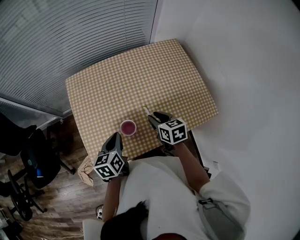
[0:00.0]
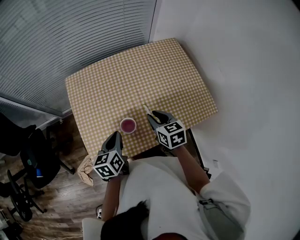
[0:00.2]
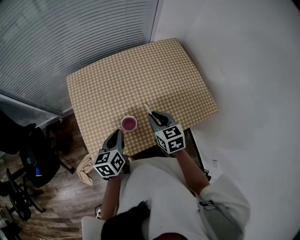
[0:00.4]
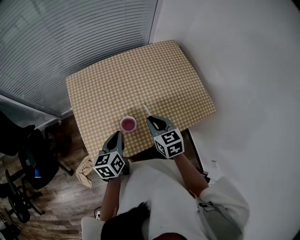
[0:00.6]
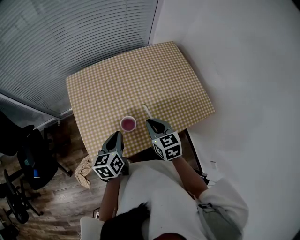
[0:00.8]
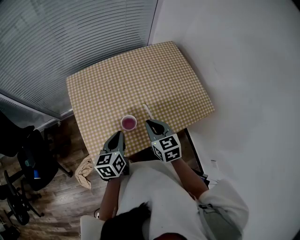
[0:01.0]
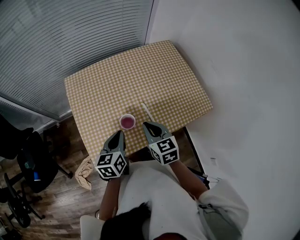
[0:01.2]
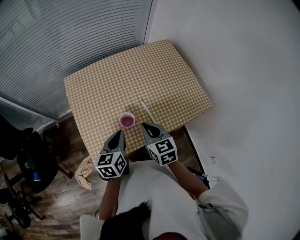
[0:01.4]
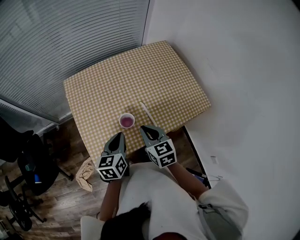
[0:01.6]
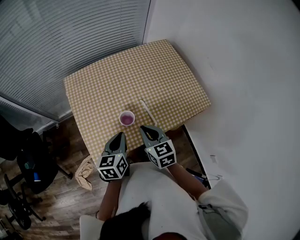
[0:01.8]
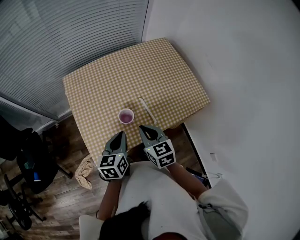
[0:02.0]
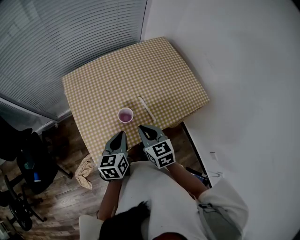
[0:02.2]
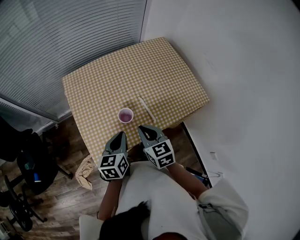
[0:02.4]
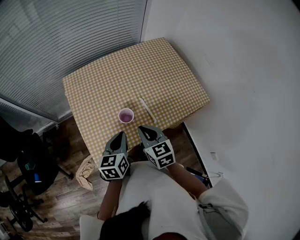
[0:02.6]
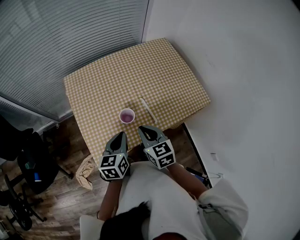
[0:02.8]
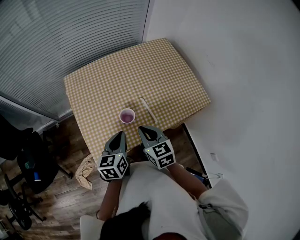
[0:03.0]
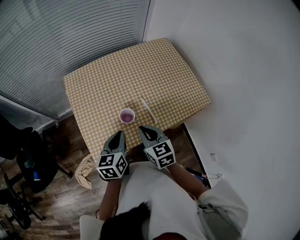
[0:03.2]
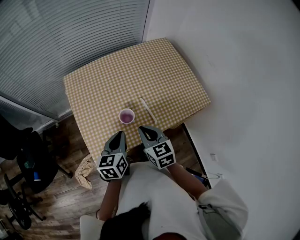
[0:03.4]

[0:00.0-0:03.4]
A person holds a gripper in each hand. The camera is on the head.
0:00.0 to 0:01.6: The left gripper moves roughly 5 cm; the right gripper goes some 15 cm backward, to the left and upward, and closes its fingers.
0:01.6 to 0:03.4: The grippers move only a little.

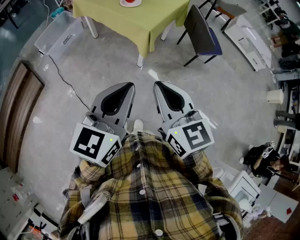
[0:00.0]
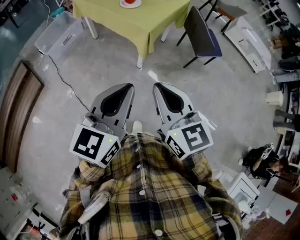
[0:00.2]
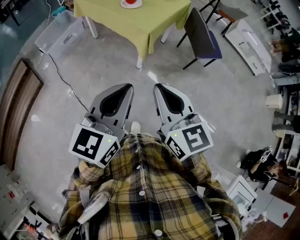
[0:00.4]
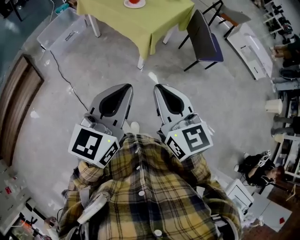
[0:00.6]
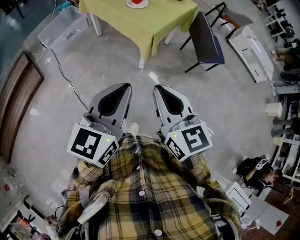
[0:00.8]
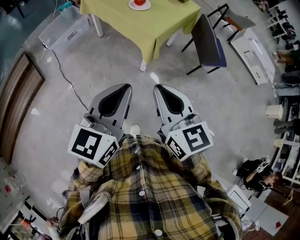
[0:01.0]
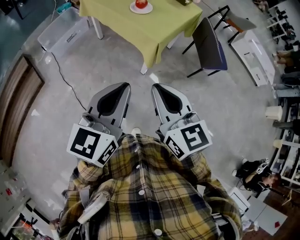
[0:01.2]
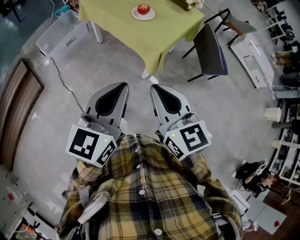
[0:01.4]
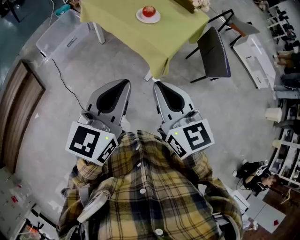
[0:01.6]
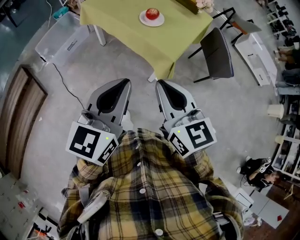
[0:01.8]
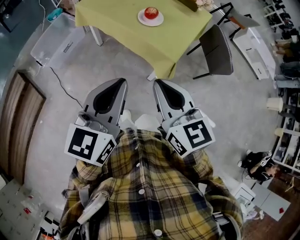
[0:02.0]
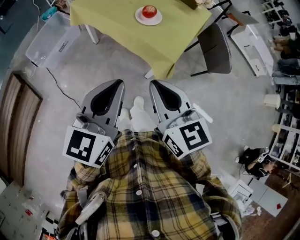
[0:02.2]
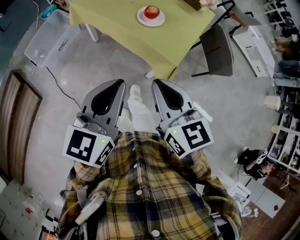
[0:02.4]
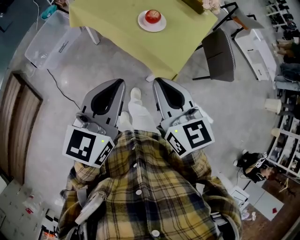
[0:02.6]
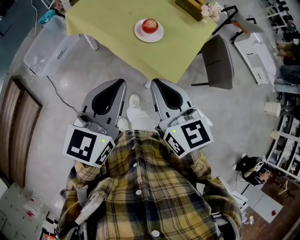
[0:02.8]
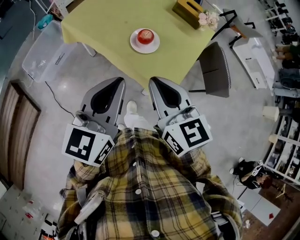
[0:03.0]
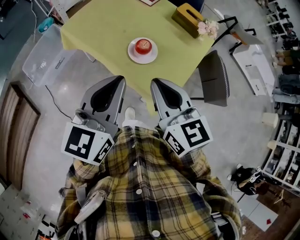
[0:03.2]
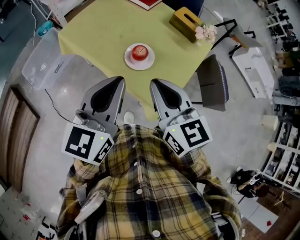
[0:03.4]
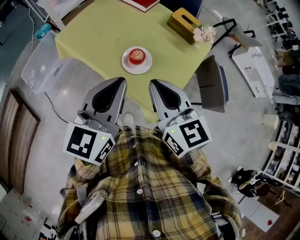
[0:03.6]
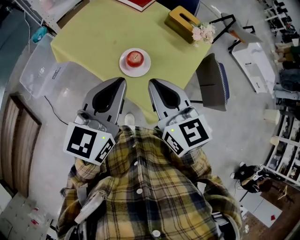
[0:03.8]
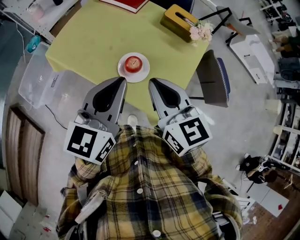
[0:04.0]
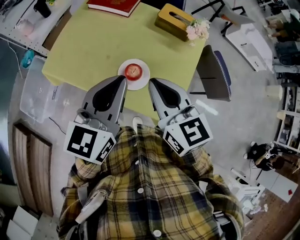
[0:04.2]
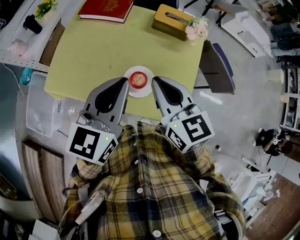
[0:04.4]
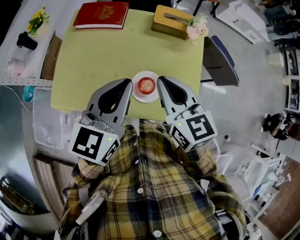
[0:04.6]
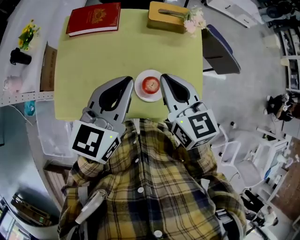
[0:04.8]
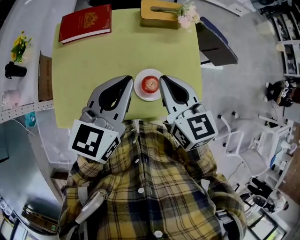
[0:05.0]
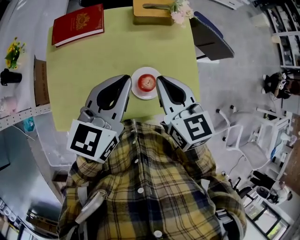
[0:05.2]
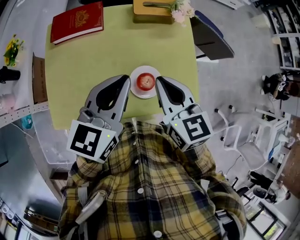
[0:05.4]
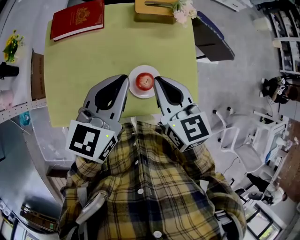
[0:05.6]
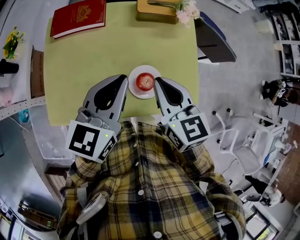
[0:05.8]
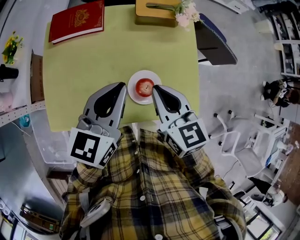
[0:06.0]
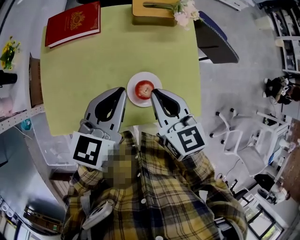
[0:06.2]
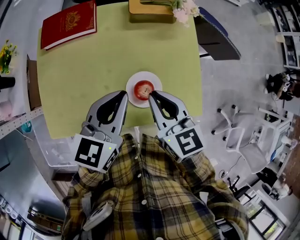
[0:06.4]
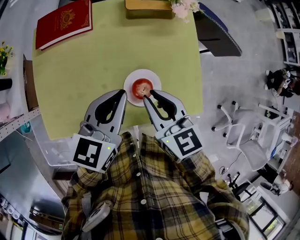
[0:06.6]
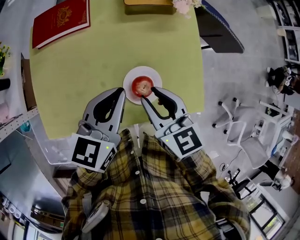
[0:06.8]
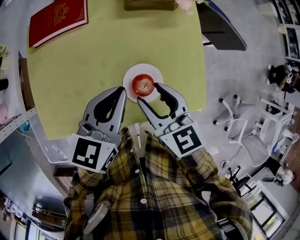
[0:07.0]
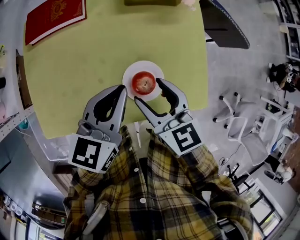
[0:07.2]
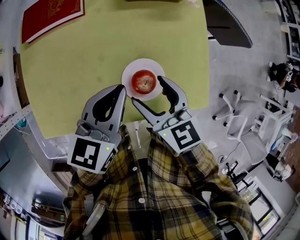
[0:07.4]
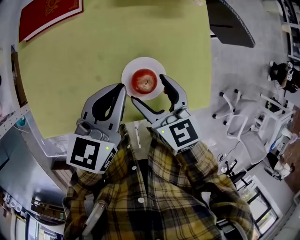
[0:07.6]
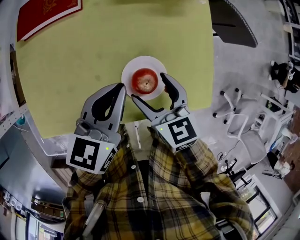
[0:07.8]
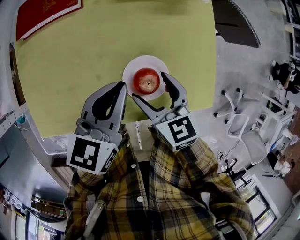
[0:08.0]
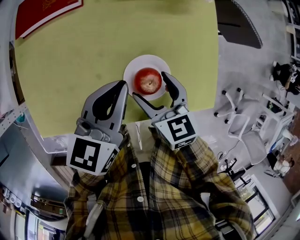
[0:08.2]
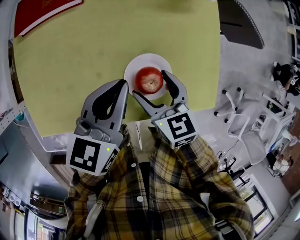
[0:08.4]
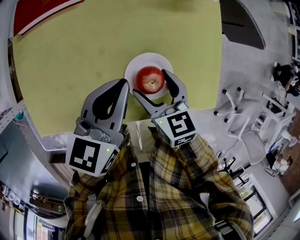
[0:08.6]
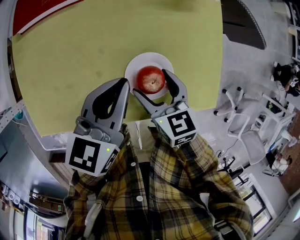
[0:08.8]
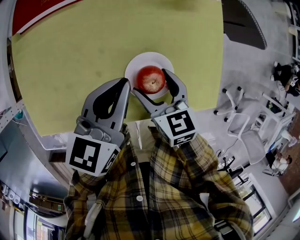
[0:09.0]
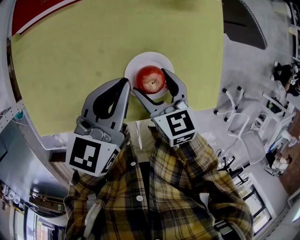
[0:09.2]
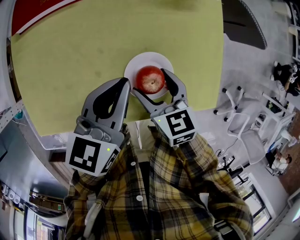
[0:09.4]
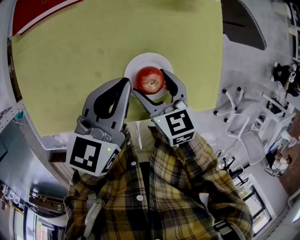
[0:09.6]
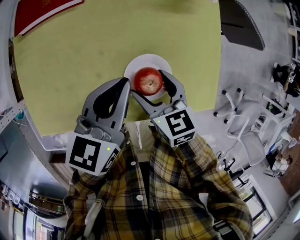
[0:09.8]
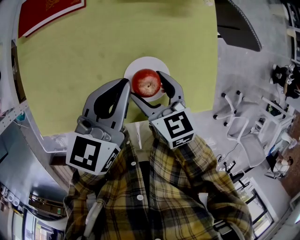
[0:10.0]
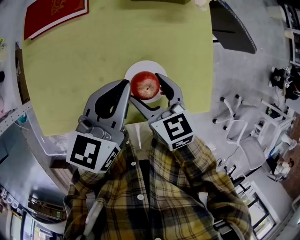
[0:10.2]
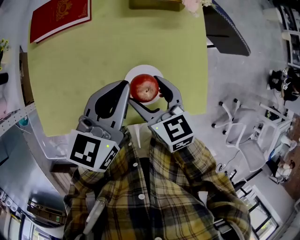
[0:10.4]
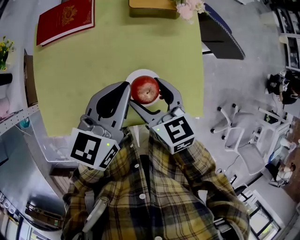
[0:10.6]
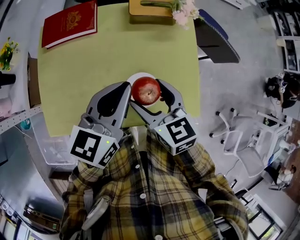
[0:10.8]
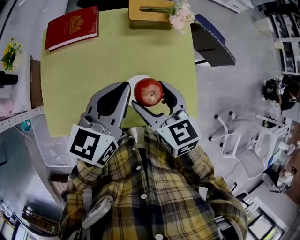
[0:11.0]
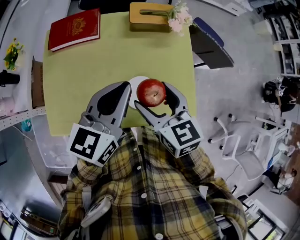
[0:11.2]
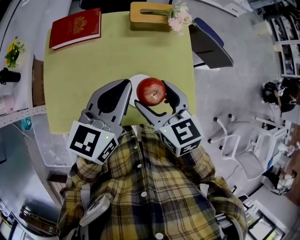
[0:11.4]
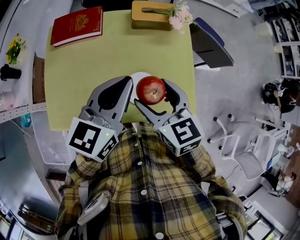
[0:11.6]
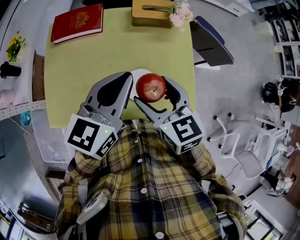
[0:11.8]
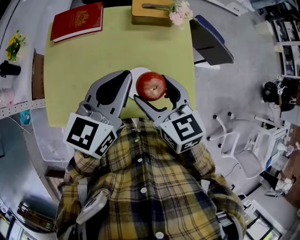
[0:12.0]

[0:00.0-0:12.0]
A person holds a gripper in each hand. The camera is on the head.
0:00.0 to 0:01.6: Both grippers move forward and to the left, approximately 20 cm.
0:01.6 to 0:03.0: Both grippers travel together forward, roughly 30 cm.
0:03.0 to 0:04.4: Both grippers travel together forward, roughly 25 cm. The left gripper changes its angle by some 20 degrees.
0:04.4 to 0:06.0: The right gripper shifts approximately 5 cm downward, and changes its angle by about 20 degrees. The left gripper ends up roughly 10 cm from where it was, and turns by roughly 20 degrees.
0:06.0 to 0:07.6: The two grippers go some 10 cm downward. The right gripper opens its fingers.
0:07.6 to 0:09.0: The right gripper heads downward, covering some 5 cm.
0:09.0 to 0:10.4: Both grippers move upward, some 10 cm.
0:10.4 to 0:12.0: The two grippers go roughly 10 cm upward.

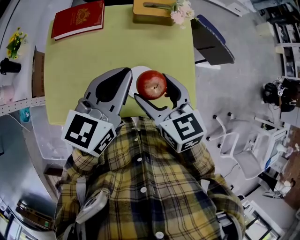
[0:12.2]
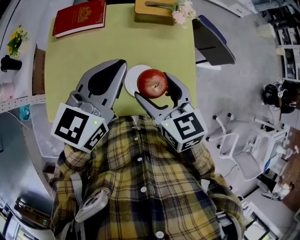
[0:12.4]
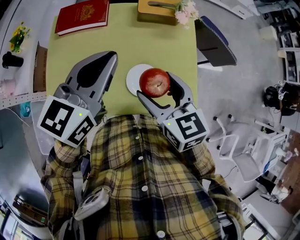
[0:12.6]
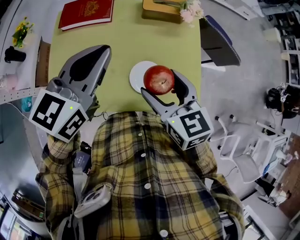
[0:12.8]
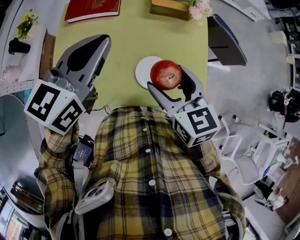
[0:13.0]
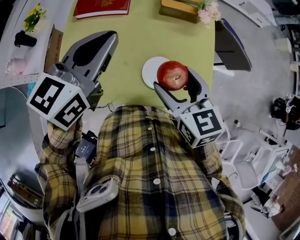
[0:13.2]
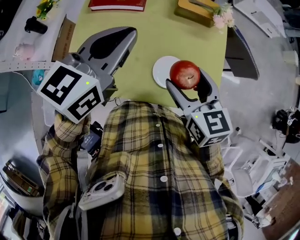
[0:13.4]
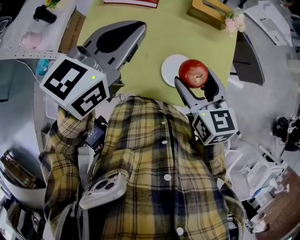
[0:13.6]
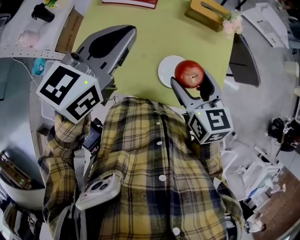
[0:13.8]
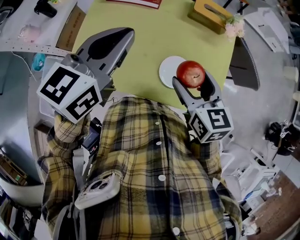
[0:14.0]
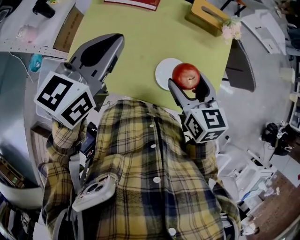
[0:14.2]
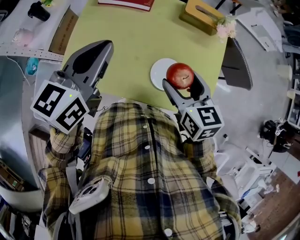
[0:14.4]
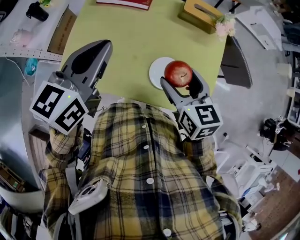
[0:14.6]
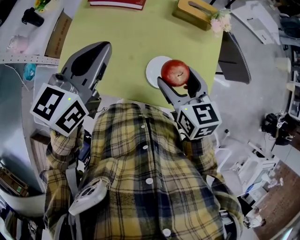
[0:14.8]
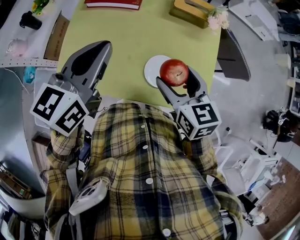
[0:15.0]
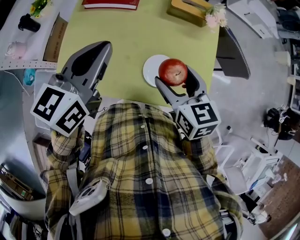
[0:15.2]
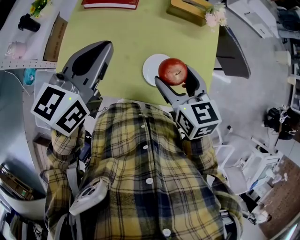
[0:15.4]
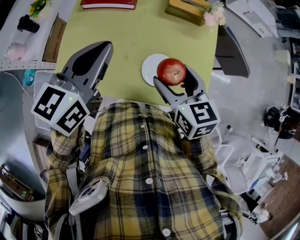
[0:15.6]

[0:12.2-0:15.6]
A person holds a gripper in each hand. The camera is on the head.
0:12.2 to 0:13.8: The left gripper shifts about 10 cm to the left.
0:13.8 to 0:15.6: There are only small adjustments of the grippers.

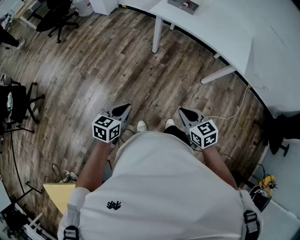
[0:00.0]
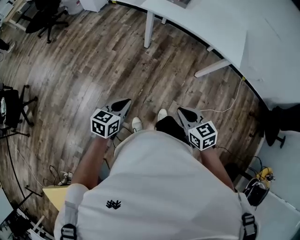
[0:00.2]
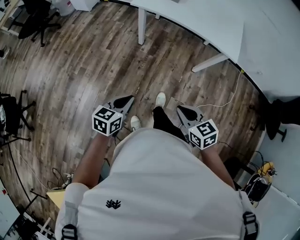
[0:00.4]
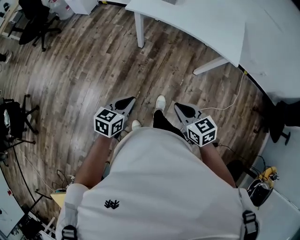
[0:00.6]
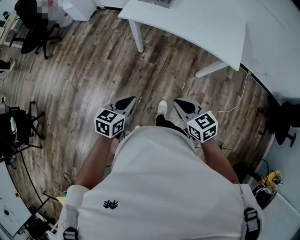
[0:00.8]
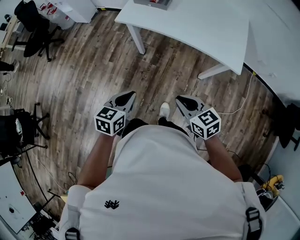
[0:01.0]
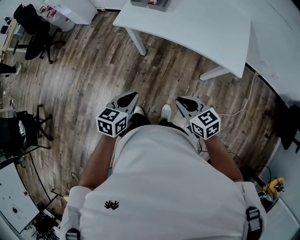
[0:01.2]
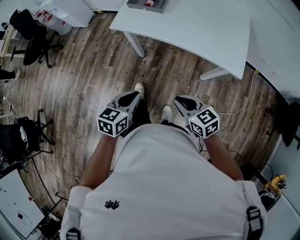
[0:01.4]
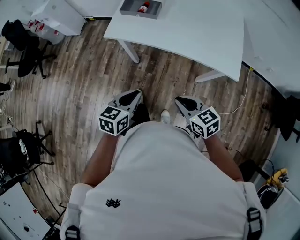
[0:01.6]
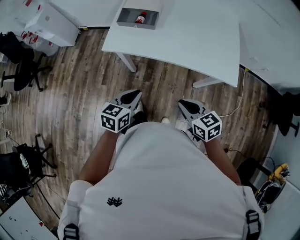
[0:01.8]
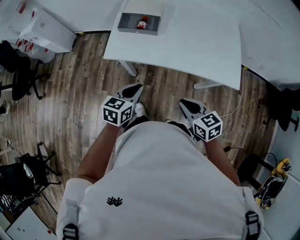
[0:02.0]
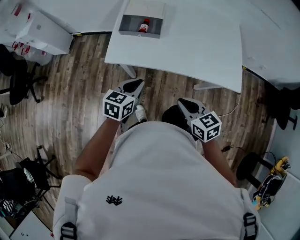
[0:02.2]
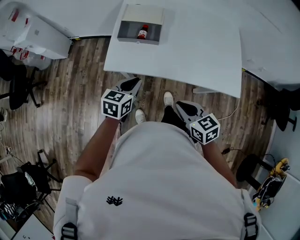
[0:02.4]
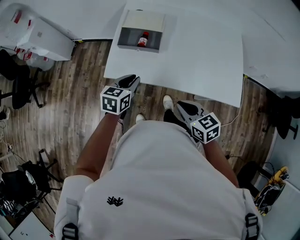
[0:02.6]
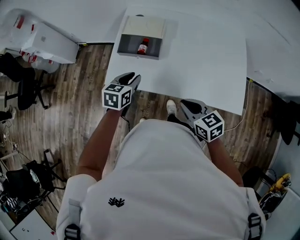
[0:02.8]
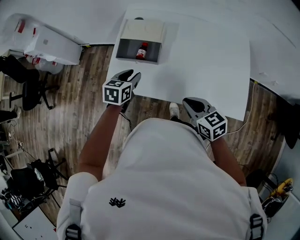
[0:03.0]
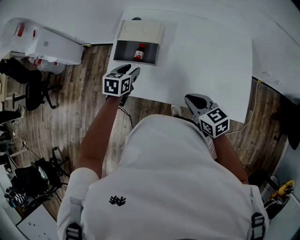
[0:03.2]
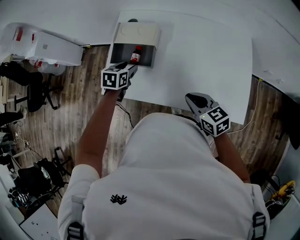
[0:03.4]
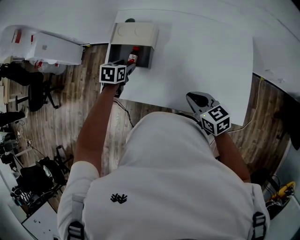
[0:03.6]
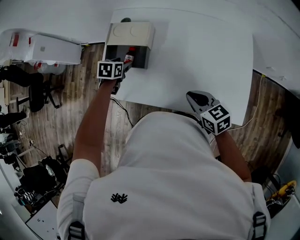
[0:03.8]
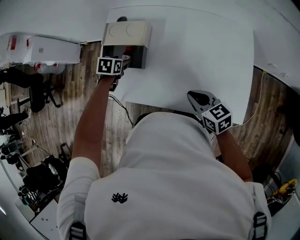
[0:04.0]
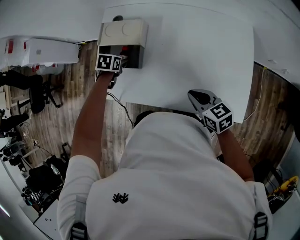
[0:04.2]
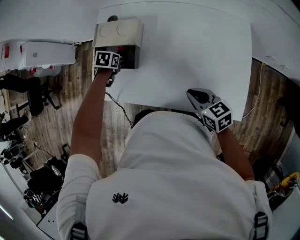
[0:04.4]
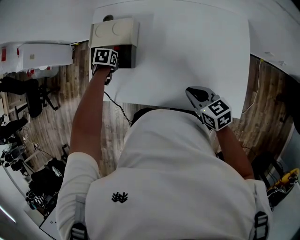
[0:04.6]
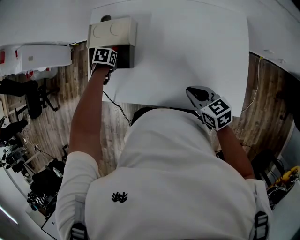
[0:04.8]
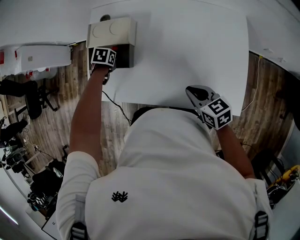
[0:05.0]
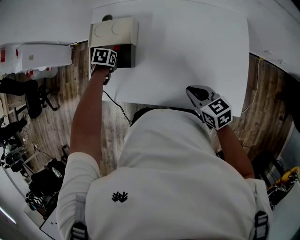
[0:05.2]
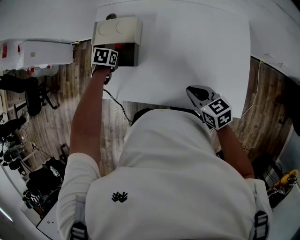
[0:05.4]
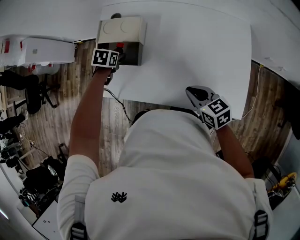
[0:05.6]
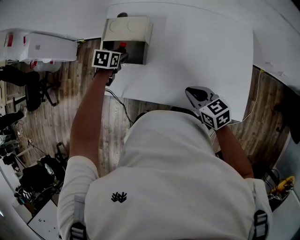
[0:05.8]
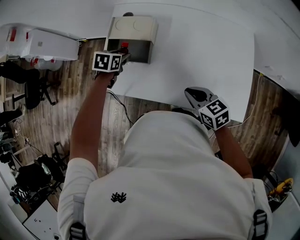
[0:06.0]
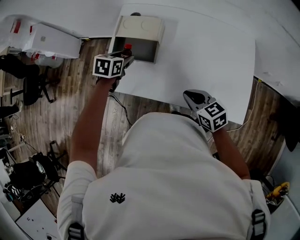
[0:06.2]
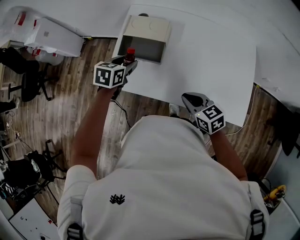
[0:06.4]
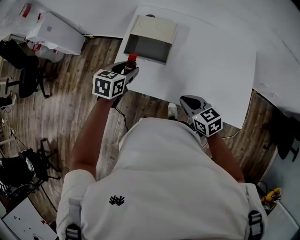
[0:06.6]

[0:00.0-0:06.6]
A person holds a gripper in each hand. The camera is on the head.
0:00.0 to 0:01.6: The left gripper moves forward and to the right, about 35 cm, while the right gripper moves forward, some 25 cm.
0:01.6 to 0:03.2: Both grippers move forward, some 35 cm. The left gripper opens its fingers.
0:03.2 to 0:05.0: The right gripper shifts by about 10 cm. The left gripper moves downward, roughly 10 cm, and points its fingers about 30 degrees further downward.
0:05.0 to 0:06.6: The left gripper goes approximately 15 cm upward, and angles its fingers upward, by roughly 40 degrees; the right gripper moves roughly 15 cm.
